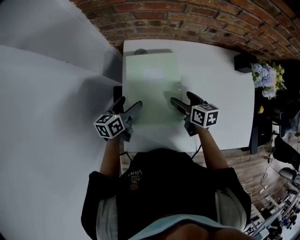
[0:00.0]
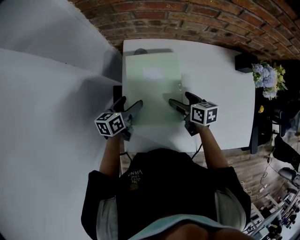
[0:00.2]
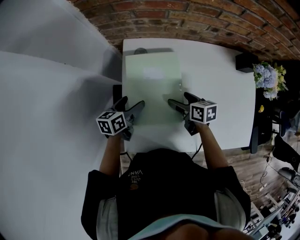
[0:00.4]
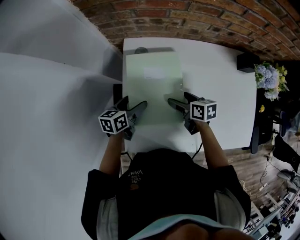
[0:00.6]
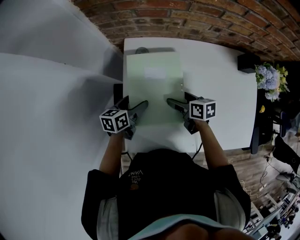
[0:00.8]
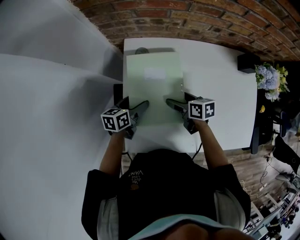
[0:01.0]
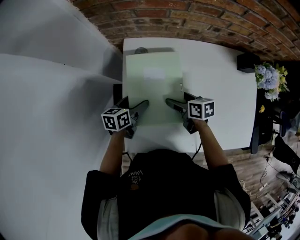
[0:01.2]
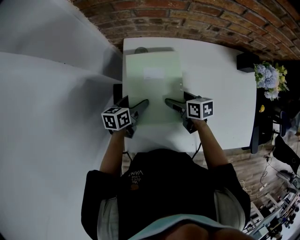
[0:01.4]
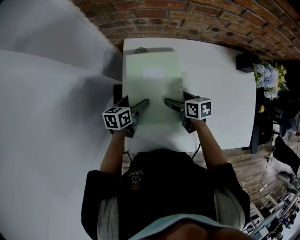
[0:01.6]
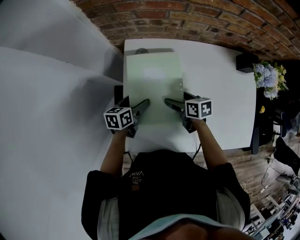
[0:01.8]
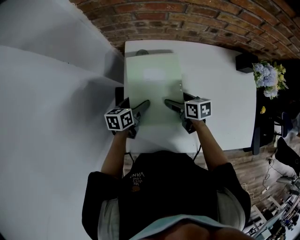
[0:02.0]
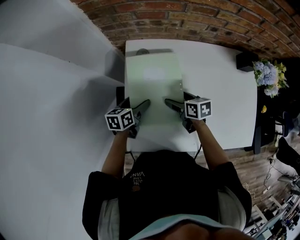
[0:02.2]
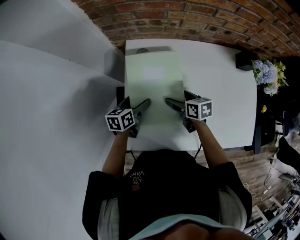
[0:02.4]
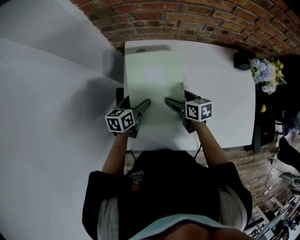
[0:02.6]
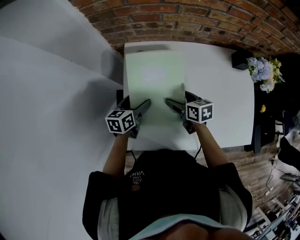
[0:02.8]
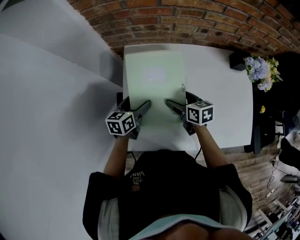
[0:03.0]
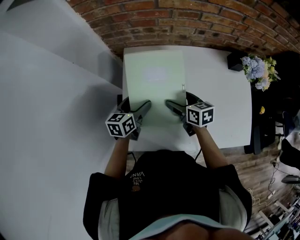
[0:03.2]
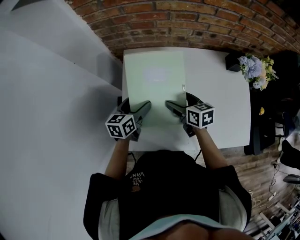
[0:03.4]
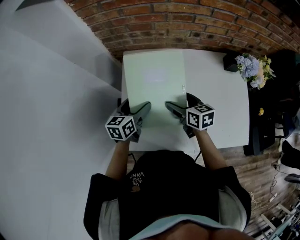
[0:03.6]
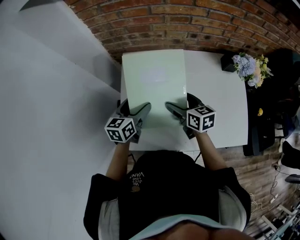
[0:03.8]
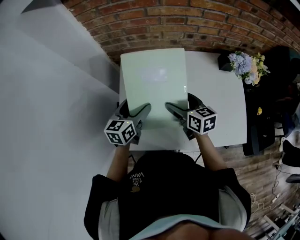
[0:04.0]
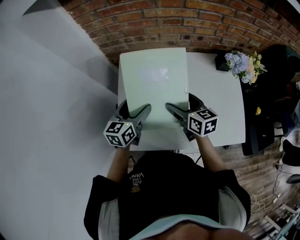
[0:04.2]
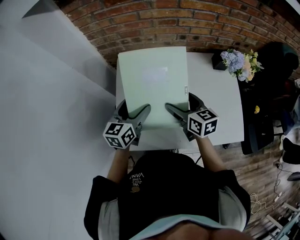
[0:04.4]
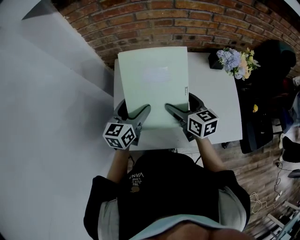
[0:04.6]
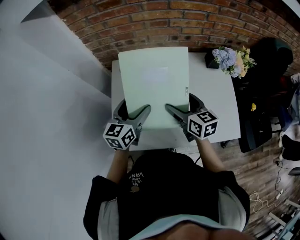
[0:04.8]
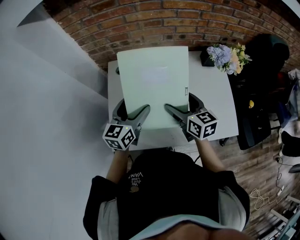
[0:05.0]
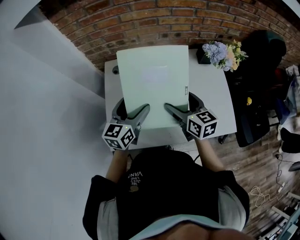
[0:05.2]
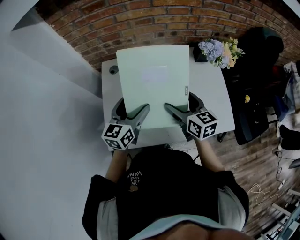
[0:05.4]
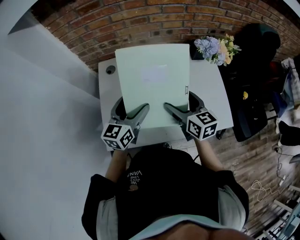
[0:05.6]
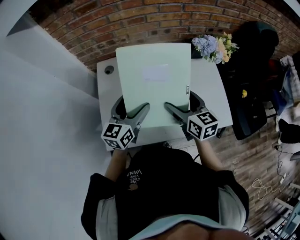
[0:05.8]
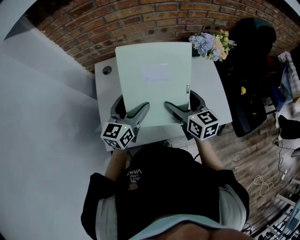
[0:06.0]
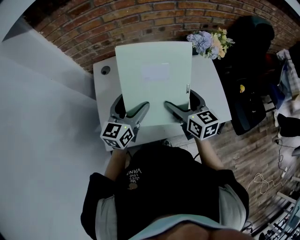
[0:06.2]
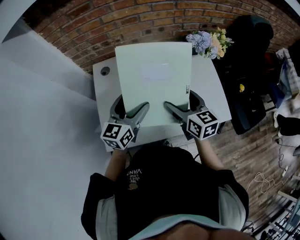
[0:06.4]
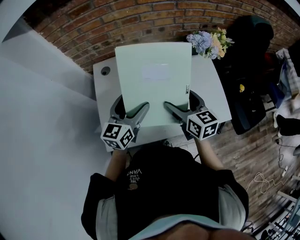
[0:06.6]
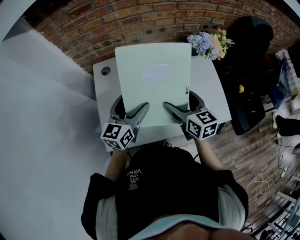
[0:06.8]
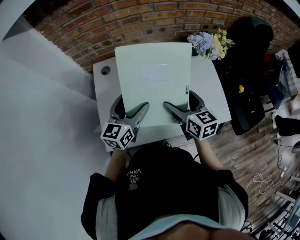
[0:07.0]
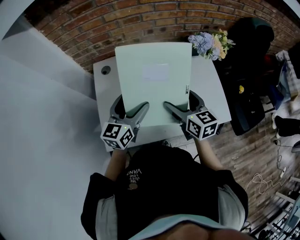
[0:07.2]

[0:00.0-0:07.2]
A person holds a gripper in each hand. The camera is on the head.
0:00.0 to 0:01.4: The left gripper shifts by roughly 5 cm.
0:01.4 to 0:02.8: The grippers make only small movements.
0:02.8 to 0:04.4: The two grippers go approximately 15 cm upward and to the right. The left gripper rotates some 20 degrees, while the right gripper changes its angle by roughly 20 degrees.
0:04.4 to 0:05.8: The left gripper moves to the right, about 10 cm; the right gripper heads to the right and backward, covering roughly 10 cm.
0:05.8 to 0:07.2: There are only small adjustments of the grippers.

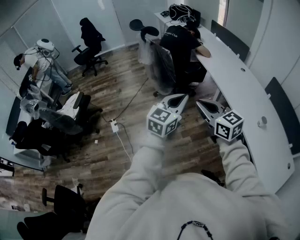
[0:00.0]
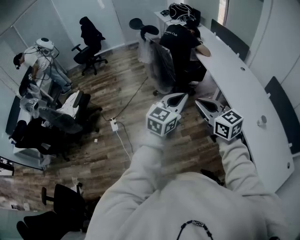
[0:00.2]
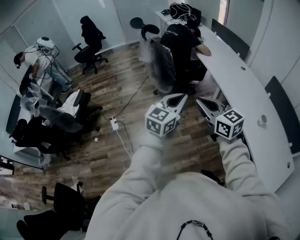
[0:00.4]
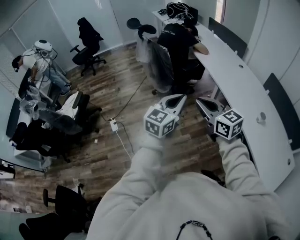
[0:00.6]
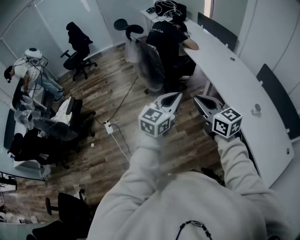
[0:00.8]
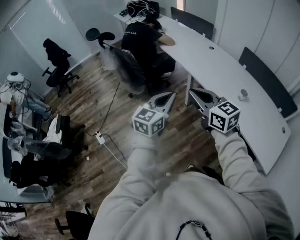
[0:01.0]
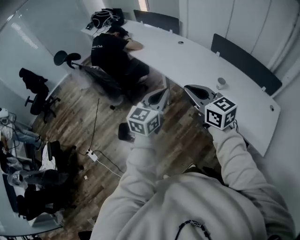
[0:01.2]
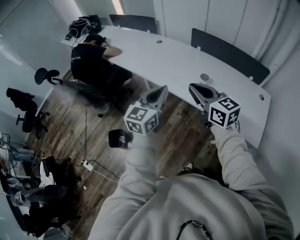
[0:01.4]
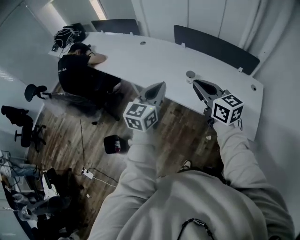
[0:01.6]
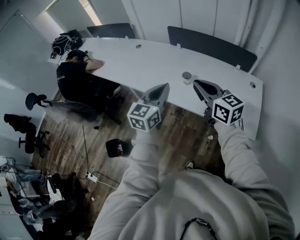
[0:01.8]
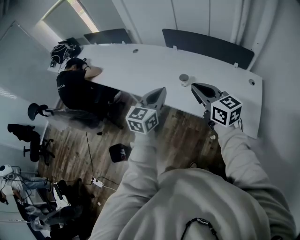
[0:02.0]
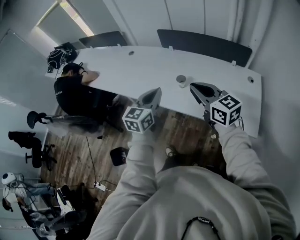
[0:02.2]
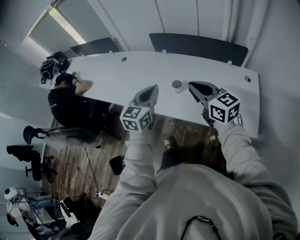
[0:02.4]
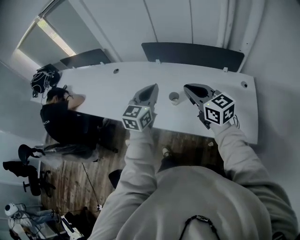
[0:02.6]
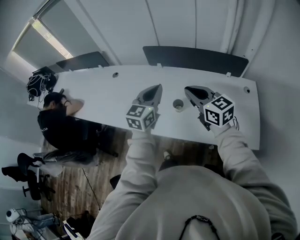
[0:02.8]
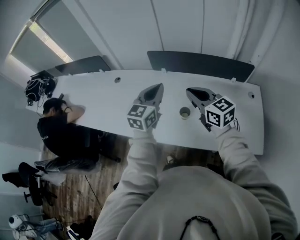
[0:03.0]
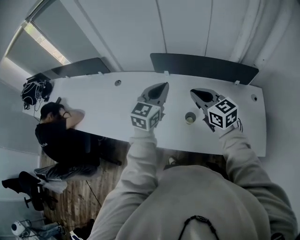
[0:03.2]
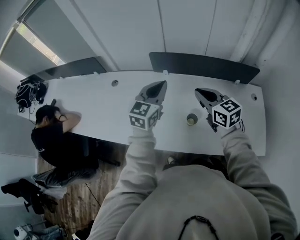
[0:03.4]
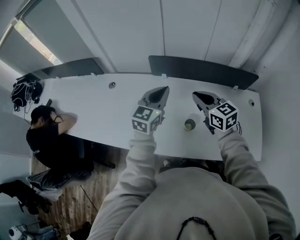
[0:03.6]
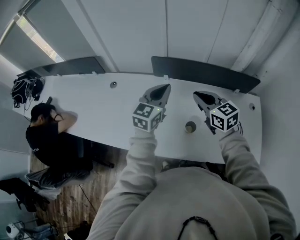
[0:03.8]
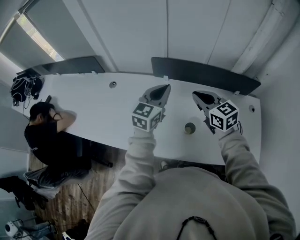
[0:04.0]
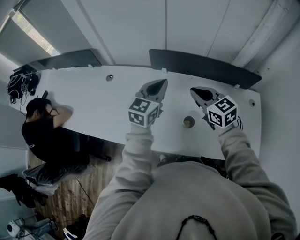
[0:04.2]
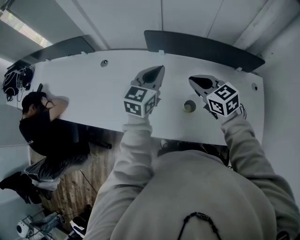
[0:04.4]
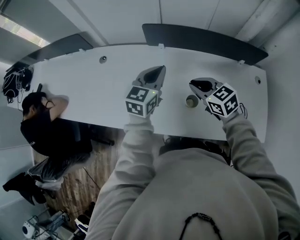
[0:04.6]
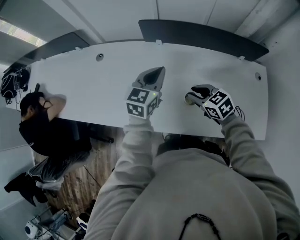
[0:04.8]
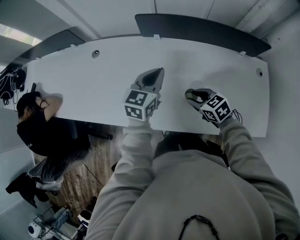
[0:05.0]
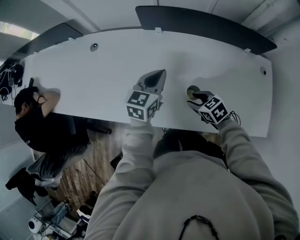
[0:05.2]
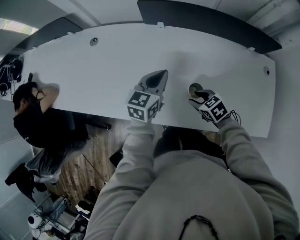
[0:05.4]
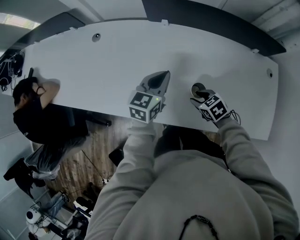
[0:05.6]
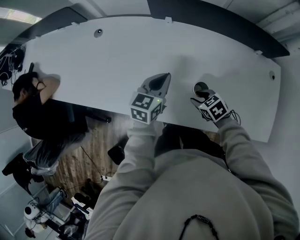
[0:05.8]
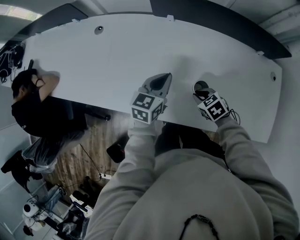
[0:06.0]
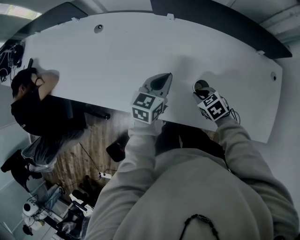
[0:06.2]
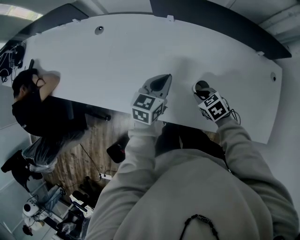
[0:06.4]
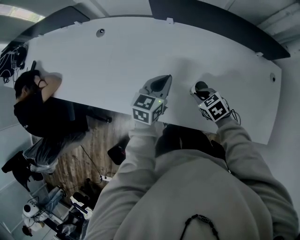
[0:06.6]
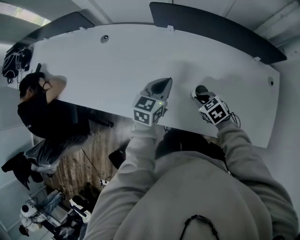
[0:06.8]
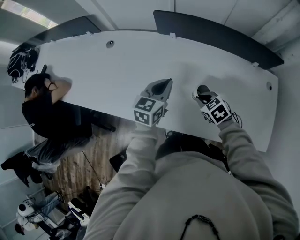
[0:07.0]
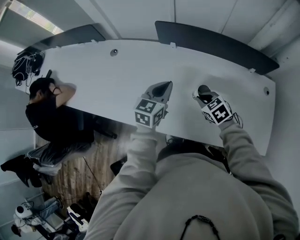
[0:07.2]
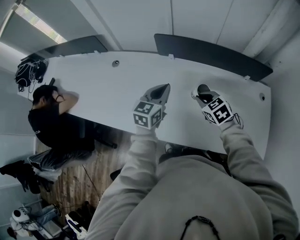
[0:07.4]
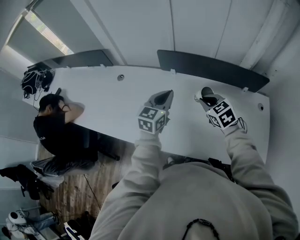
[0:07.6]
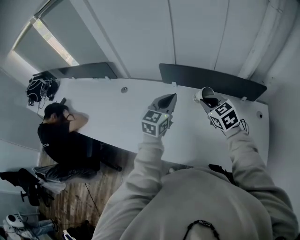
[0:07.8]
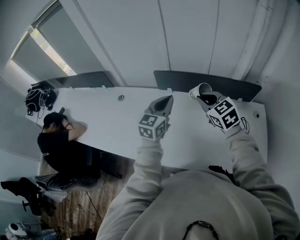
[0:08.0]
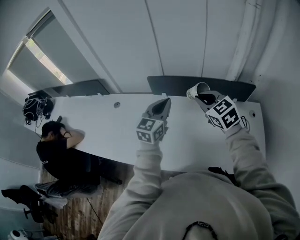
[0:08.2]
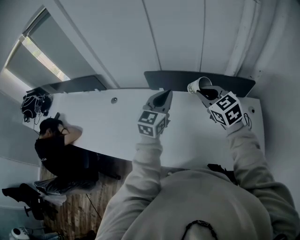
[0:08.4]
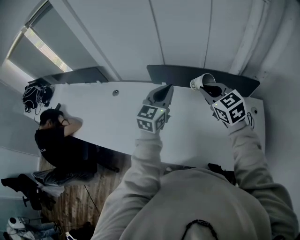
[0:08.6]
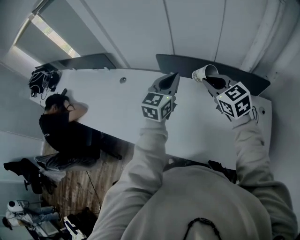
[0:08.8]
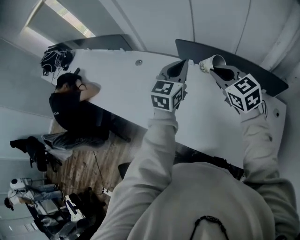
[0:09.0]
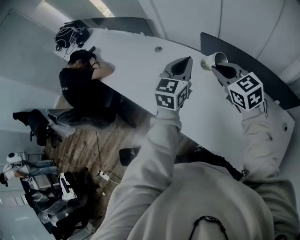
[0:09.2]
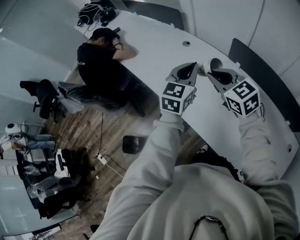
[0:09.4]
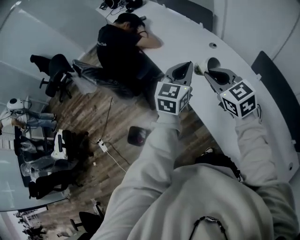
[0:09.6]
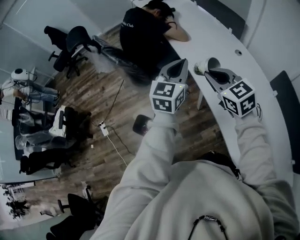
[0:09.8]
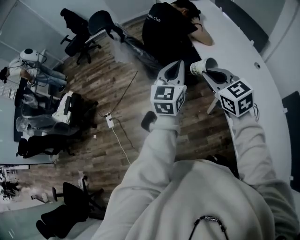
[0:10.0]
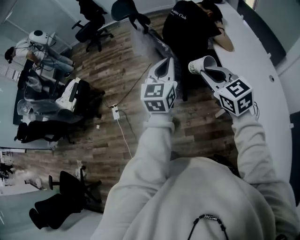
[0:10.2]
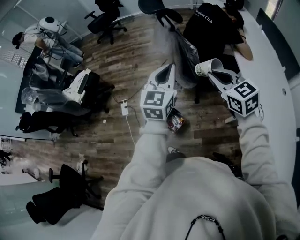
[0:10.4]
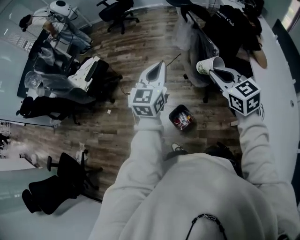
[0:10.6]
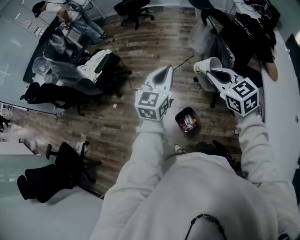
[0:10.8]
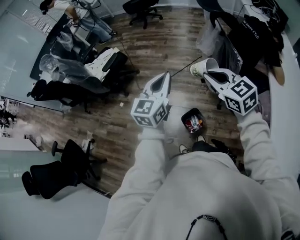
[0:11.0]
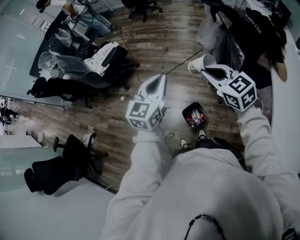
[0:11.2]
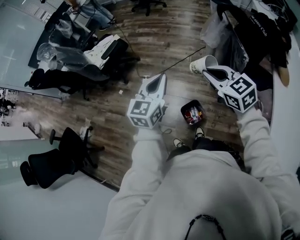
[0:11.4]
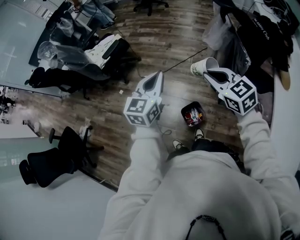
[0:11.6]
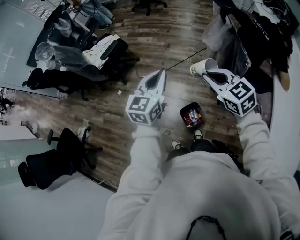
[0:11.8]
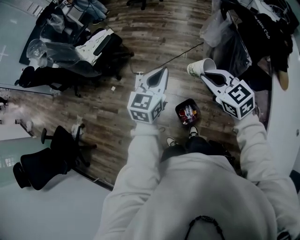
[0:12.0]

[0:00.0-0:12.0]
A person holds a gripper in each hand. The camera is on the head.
0:00.0 to 0:01.6: The right gripper shifts by approximately 40 cm, and turns by approximately 50 degrees; the left gripper changes place by about 40 cm, and changes its angle by approximately 30 degrees.
0:01.6 to 0:03.0: Both grippers travel together forward, about 30 cm.
0:03.0 to 0:04.4: The two grippers go some 15 cm forward and downward.
0:04.4 to 0:06.0: The two grippers go some 25 cm downward. The right gripper tips its fingers downward by roughly 30 degrees.
0:06.0 to 0:07.6: The two grippers go about 20 cm upward. The right gripper rotates approximately 30 degrees.
0:07.6 to 0:09.0: Both grippers move upward, about 10 cm. The right gripper turns by approximately 20 degrees.
0:09.0 to 0:10.4: The pair of grippers is taken about 90 cm. The right gripper rotates roughly 60 degrees. Meanwhile the left gripper rotates about 70 degrees.
0:10.4 to 0:12.0: The right gripper travels to the left, forward and downward by about 25 cm, and changes its angle by about 30 degrees, while the left gripper shifts roughly 25 cm to the left, downward and forward.

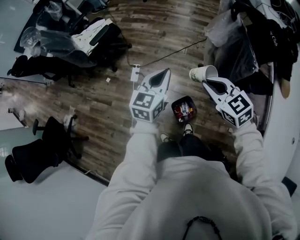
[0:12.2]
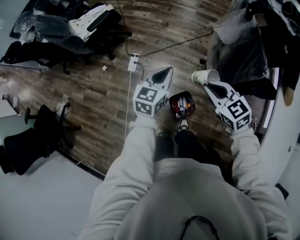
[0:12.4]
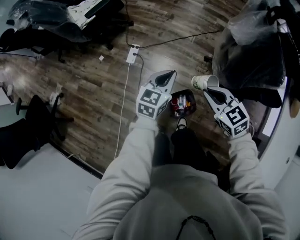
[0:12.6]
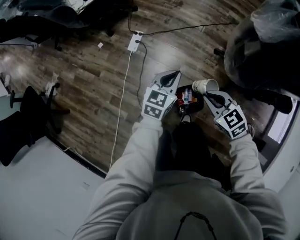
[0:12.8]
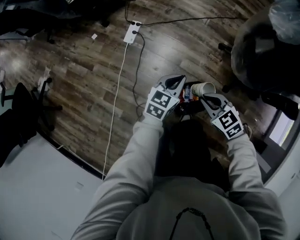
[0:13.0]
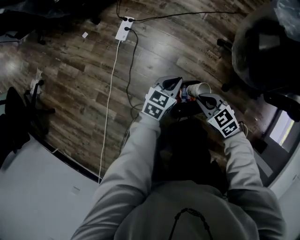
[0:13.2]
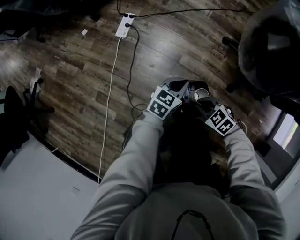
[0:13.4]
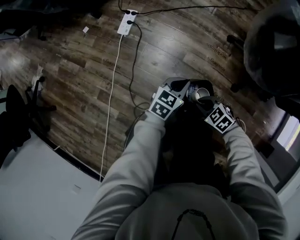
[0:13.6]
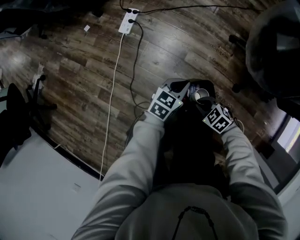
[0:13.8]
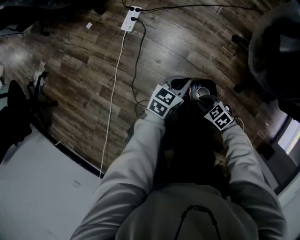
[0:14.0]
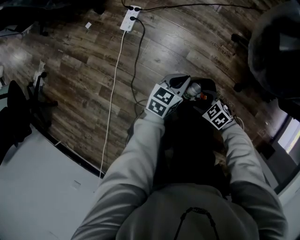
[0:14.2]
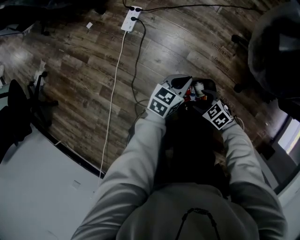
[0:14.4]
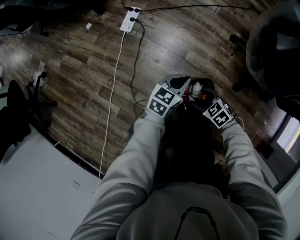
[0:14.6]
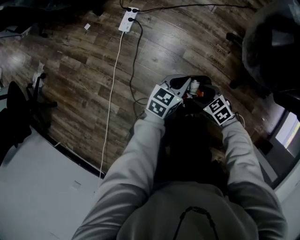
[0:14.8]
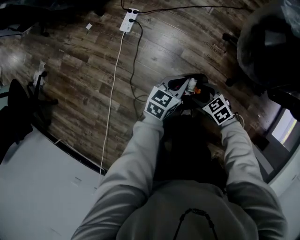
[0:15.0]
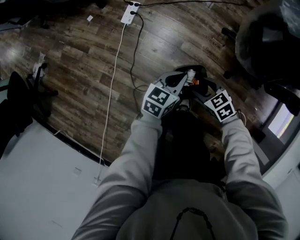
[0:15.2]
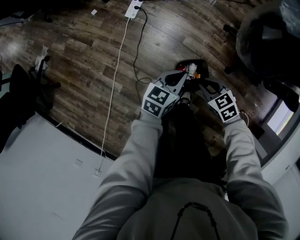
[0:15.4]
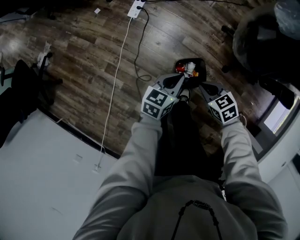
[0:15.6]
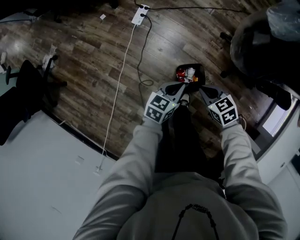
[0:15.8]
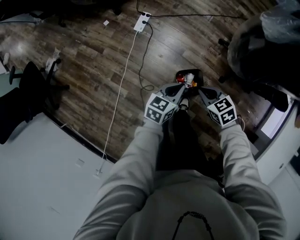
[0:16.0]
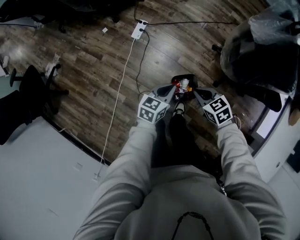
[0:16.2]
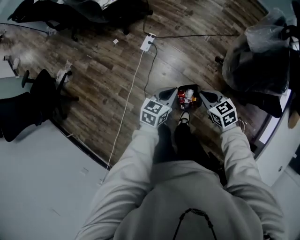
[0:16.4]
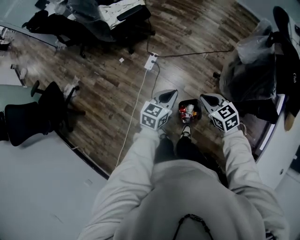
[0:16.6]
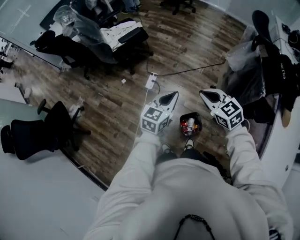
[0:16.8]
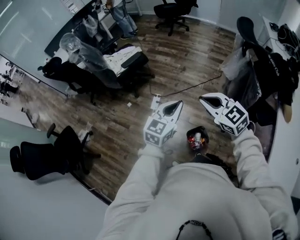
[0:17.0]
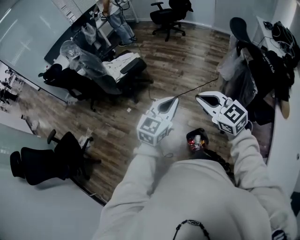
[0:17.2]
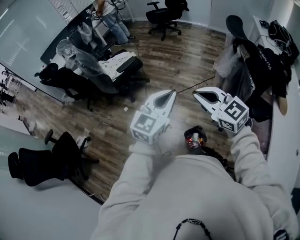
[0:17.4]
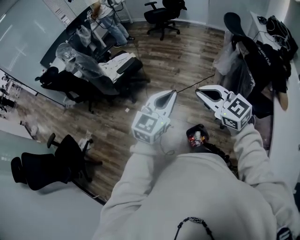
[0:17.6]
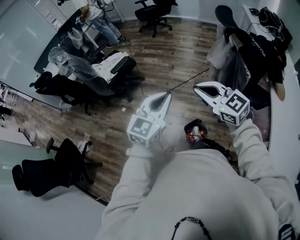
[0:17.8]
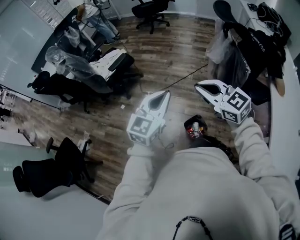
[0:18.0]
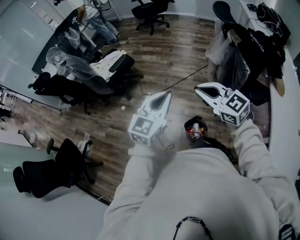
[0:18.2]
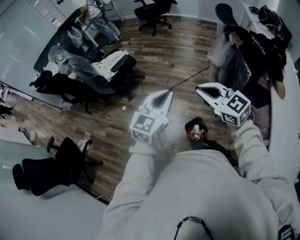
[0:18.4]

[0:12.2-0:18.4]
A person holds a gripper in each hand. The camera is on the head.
0:12.2 to 0:13.8: The grippers both shift downward by roughly 60 cm. The right gripper rotates approximately 40 degrees. Meanwhile the left gripper rotates approximately 30 degrees.
0:13.8 to 0:15.4: The grippers both shift upward by some 20 cm. The right gripper opens and closes again.
0:15.4 to 0:16.8: Both grippers move upward, roughly 40 cm. The left gripper rotates about 20 degrees. Meanwhile the right gripper changes its angle by approximately 30 degrees.
0:16.8 to 0:18.4: Both grippers move upward and backward, roughly 15 cm.
